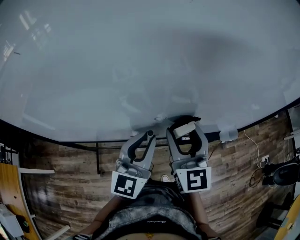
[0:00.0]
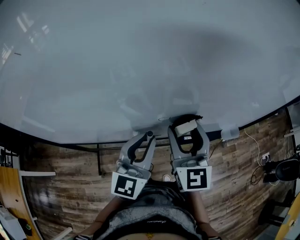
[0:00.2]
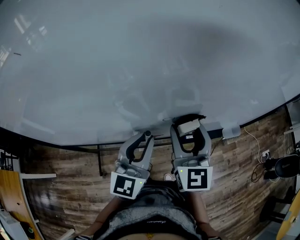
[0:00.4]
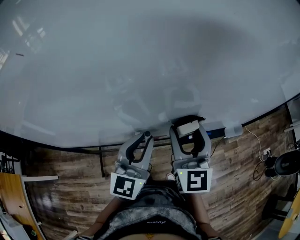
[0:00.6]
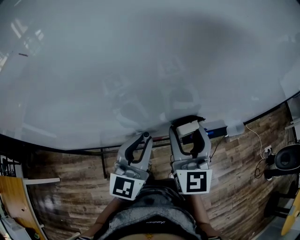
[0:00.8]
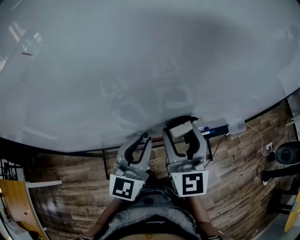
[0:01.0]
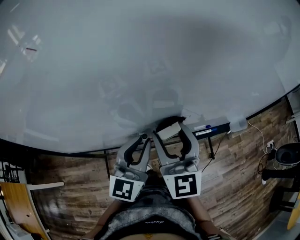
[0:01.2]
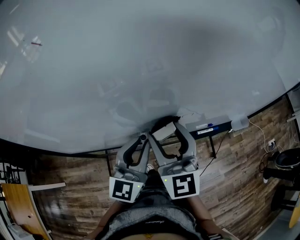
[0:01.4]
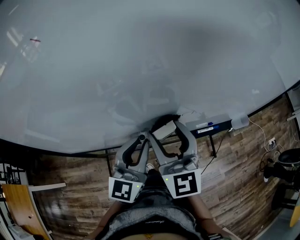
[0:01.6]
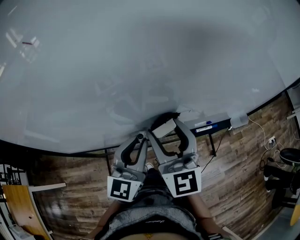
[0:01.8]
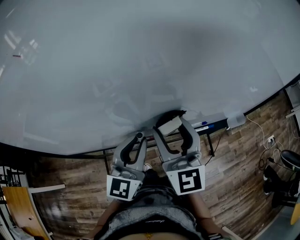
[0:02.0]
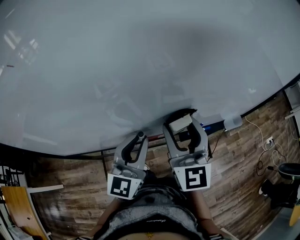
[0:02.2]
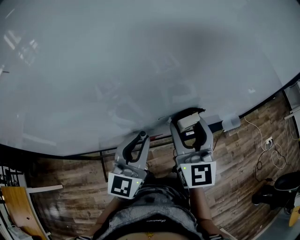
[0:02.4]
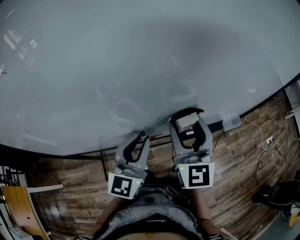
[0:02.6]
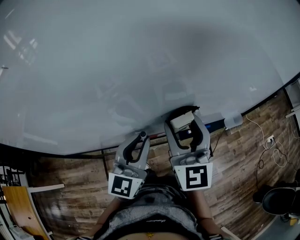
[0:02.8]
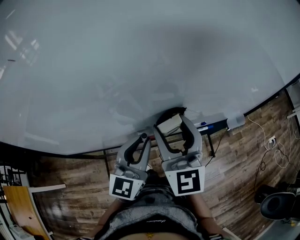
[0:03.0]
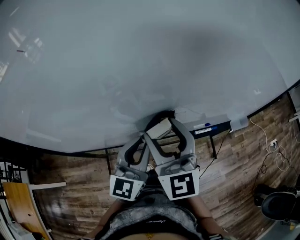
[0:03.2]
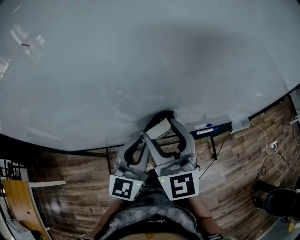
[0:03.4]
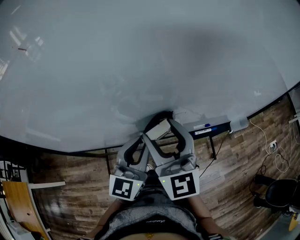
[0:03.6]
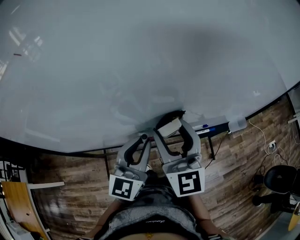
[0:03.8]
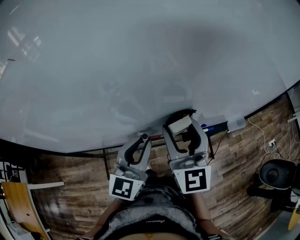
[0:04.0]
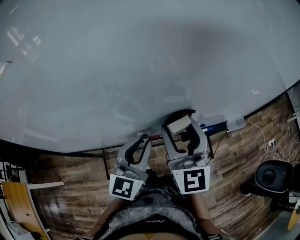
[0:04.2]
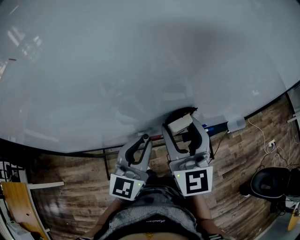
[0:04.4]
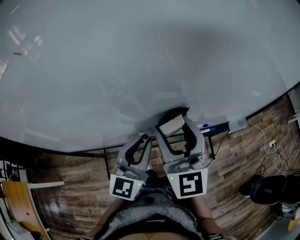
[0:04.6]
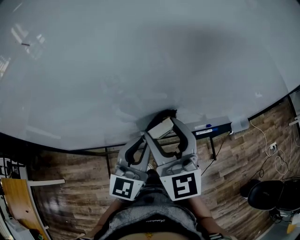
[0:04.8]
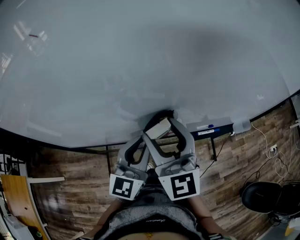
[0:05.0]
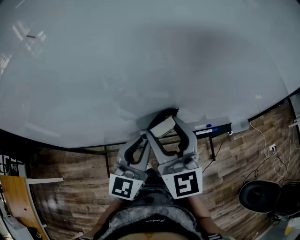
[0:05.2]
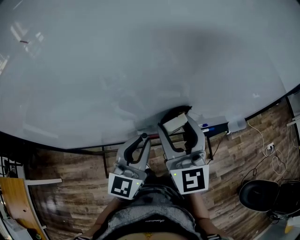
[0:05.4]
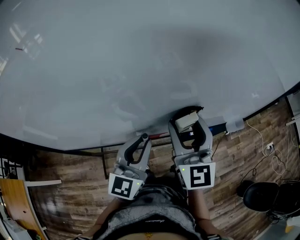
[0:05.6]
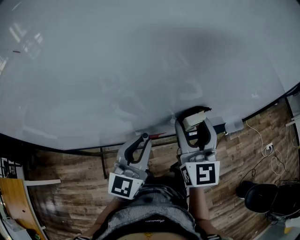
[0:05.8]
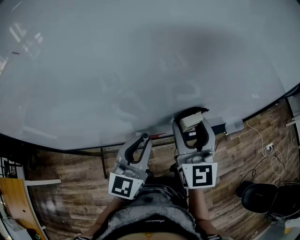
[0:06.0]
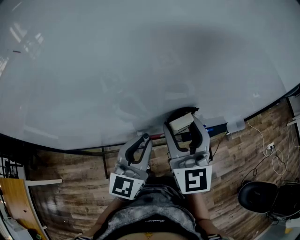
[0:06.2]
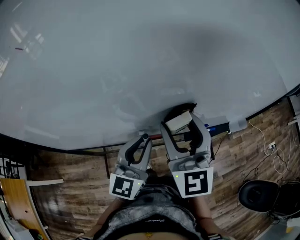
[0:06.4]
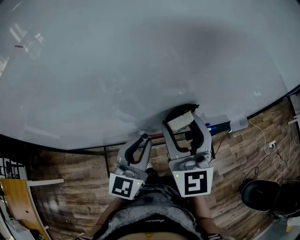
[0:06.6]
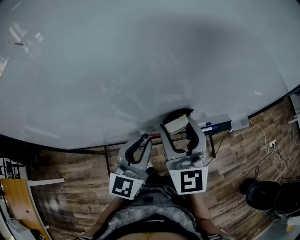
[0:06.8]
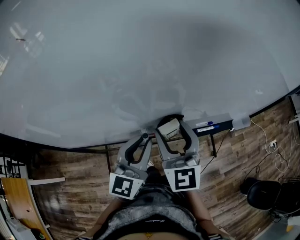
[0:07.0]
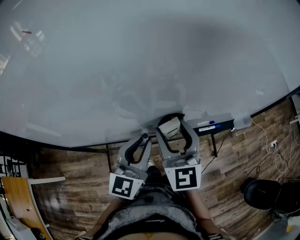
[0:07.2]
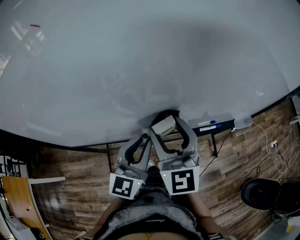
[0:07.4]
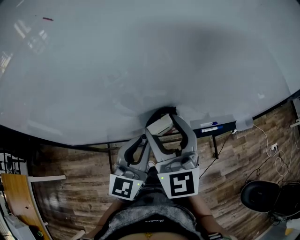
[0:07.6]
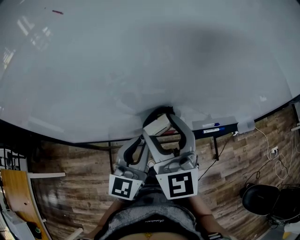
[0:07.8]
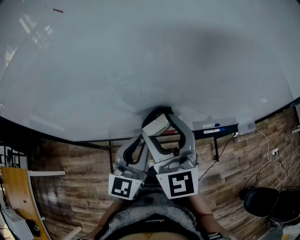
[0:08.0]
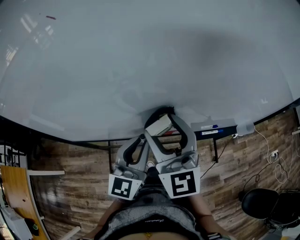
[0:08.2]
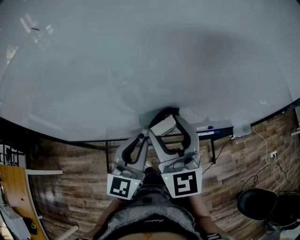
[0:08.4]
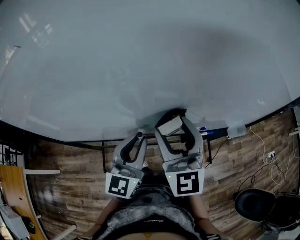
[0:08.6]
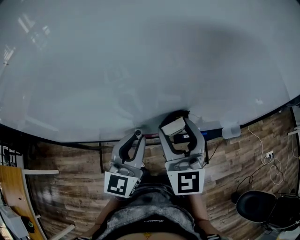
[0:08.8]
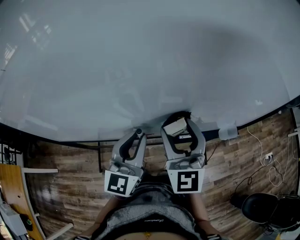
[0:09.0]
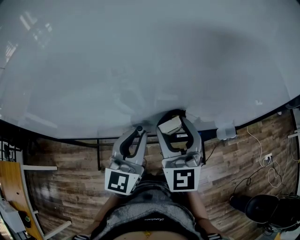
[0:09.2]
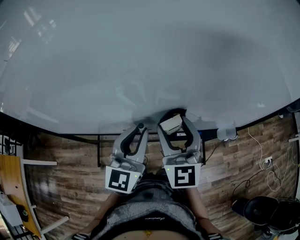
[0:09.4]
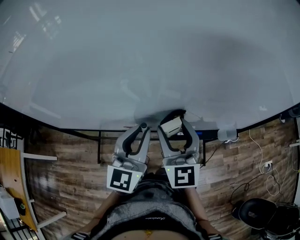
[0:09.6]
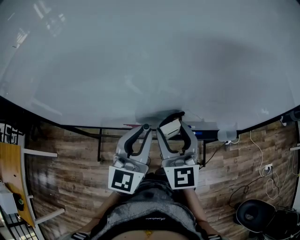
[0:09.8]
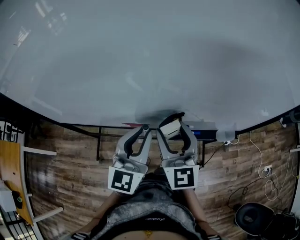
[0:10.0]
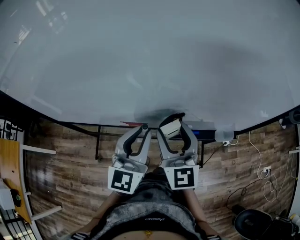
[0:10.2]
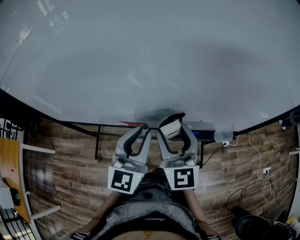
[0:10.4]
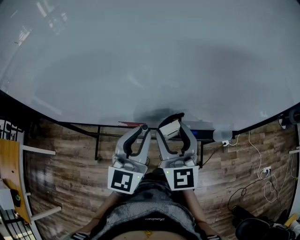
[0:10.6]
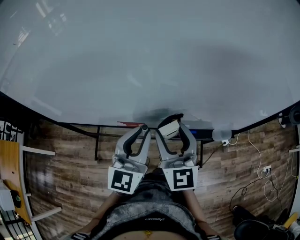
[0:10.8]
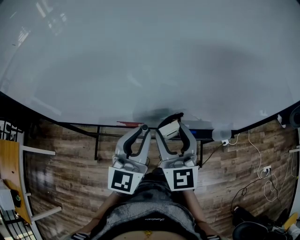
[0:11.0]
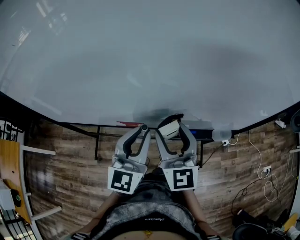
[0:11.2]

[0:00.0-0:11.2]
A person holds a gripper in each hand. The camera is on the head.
0.0 to 1.6 s: Both grippers move to the left, approximately 10 cm.
1.6 to 3.2 s: The right gripper moves roughly 10 cm to the right and comes back.
3.2 to 4.8 s: The grippers stay close to where they were, moving slightly.
4.8 to 6.4 s: The right gripper goes about 5 cm to the right.
6.4 to 8.0 s: The left gripper shifts some 5 cm to the left. Meanwhile the right gripper moves to the left, some 10 cm.
8.0 to 9.6 s: Both grippers move to the right, approximately 20 cm.
9.6 to 11.2 s: The grippers make only small movements.

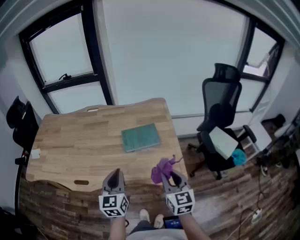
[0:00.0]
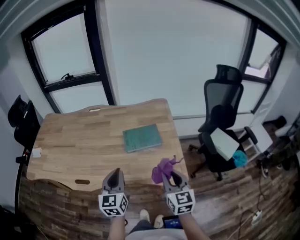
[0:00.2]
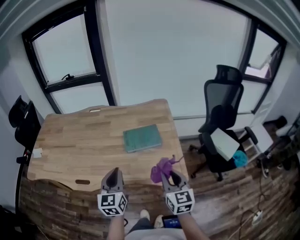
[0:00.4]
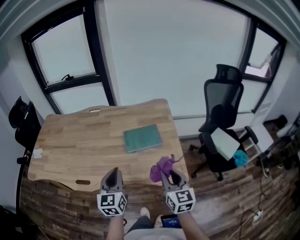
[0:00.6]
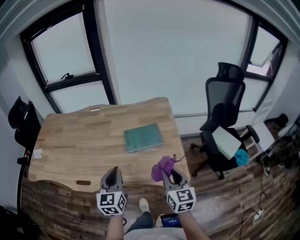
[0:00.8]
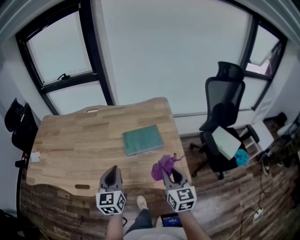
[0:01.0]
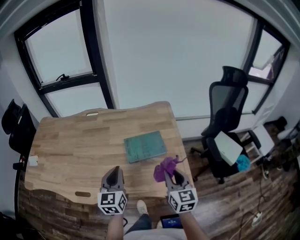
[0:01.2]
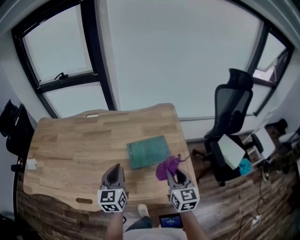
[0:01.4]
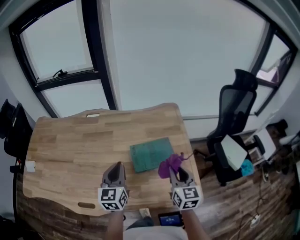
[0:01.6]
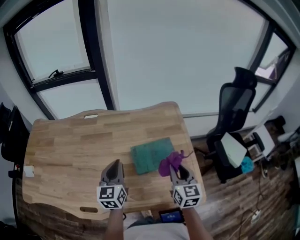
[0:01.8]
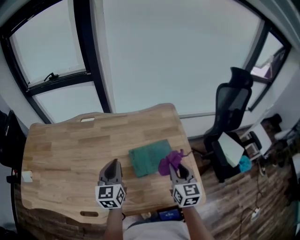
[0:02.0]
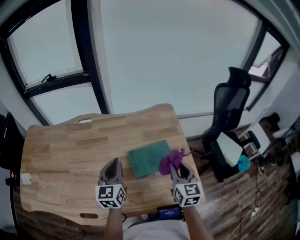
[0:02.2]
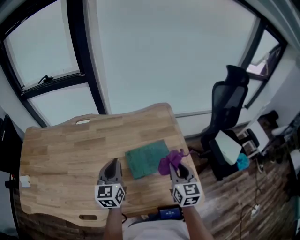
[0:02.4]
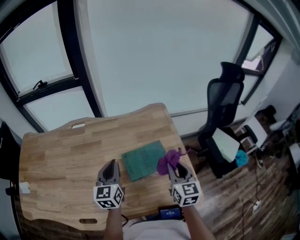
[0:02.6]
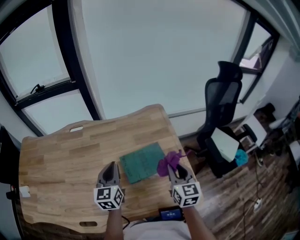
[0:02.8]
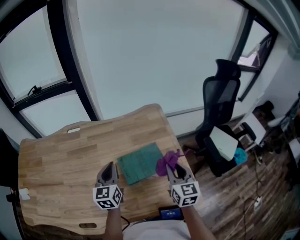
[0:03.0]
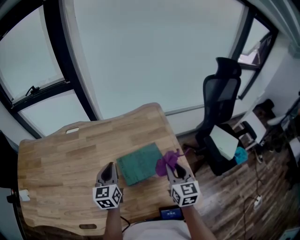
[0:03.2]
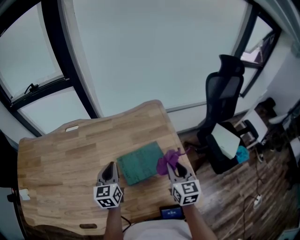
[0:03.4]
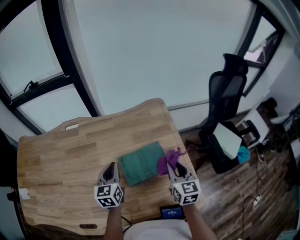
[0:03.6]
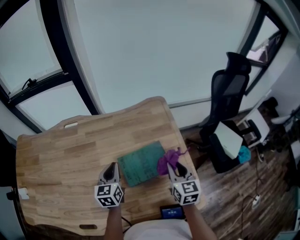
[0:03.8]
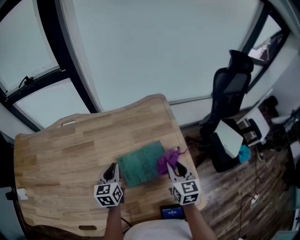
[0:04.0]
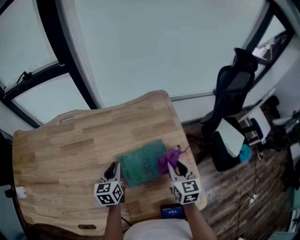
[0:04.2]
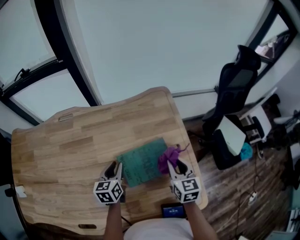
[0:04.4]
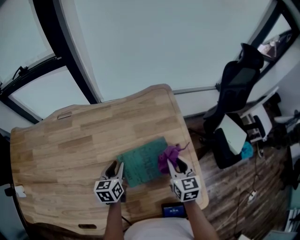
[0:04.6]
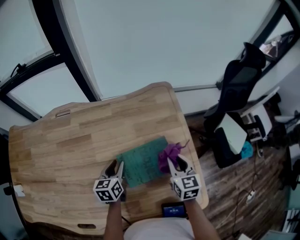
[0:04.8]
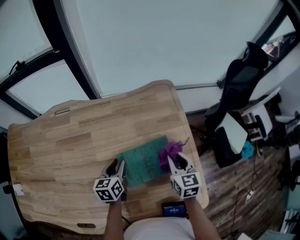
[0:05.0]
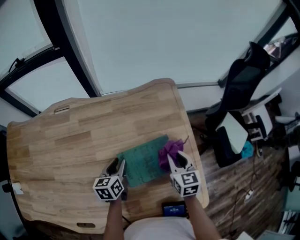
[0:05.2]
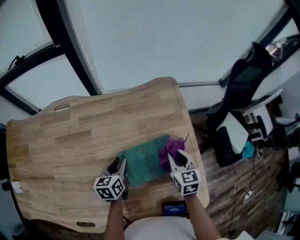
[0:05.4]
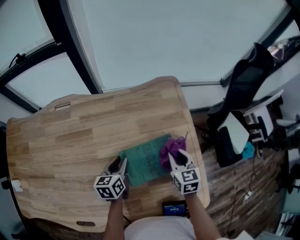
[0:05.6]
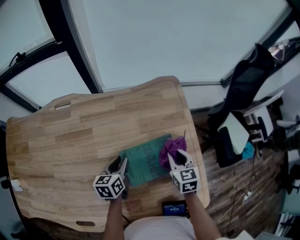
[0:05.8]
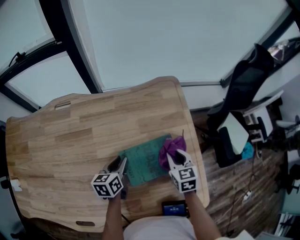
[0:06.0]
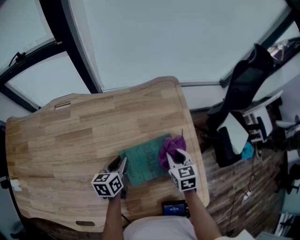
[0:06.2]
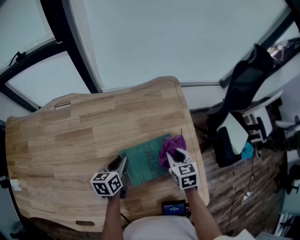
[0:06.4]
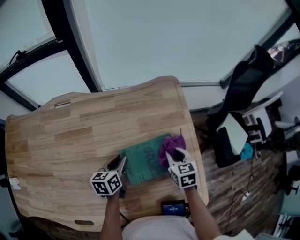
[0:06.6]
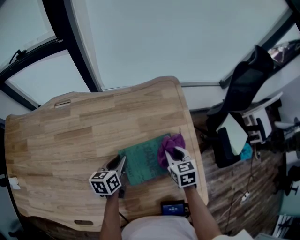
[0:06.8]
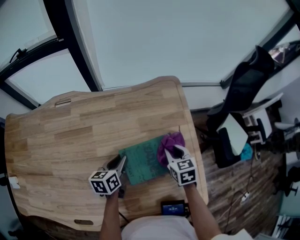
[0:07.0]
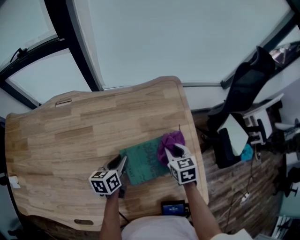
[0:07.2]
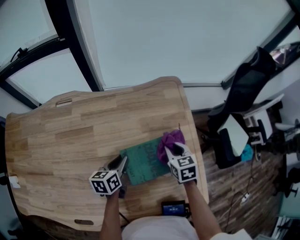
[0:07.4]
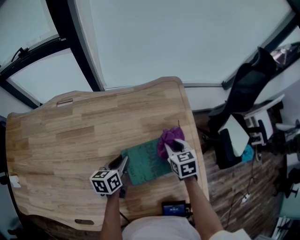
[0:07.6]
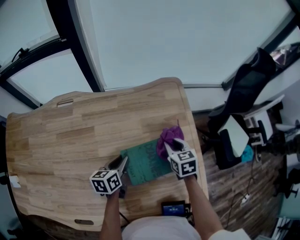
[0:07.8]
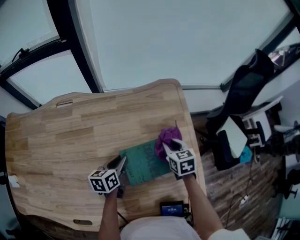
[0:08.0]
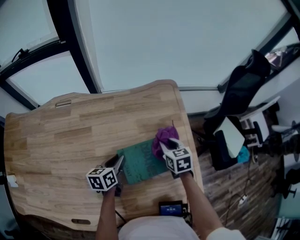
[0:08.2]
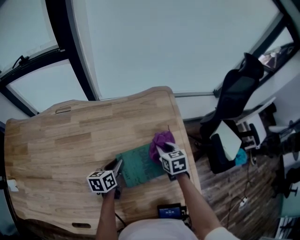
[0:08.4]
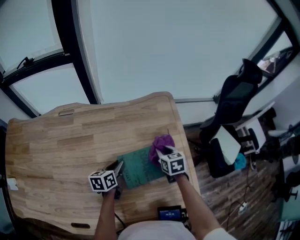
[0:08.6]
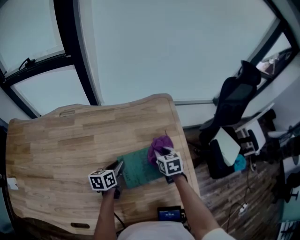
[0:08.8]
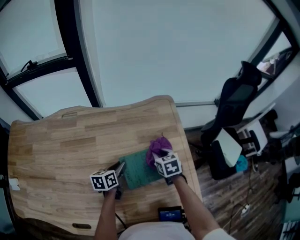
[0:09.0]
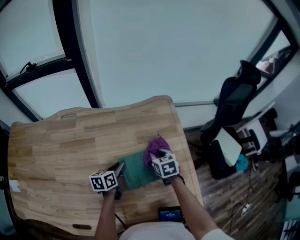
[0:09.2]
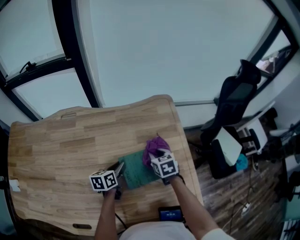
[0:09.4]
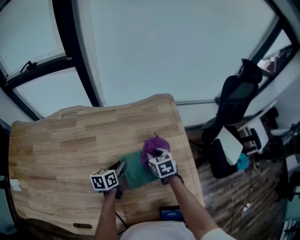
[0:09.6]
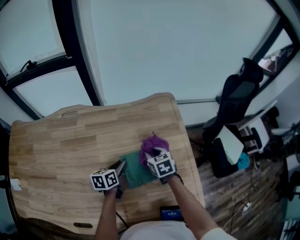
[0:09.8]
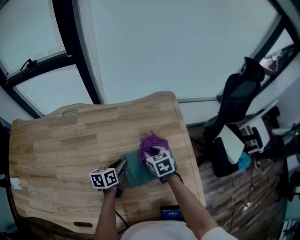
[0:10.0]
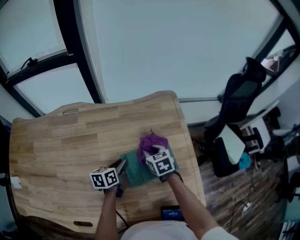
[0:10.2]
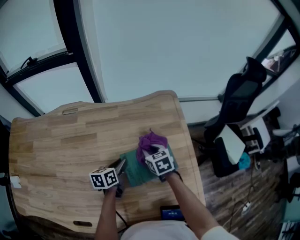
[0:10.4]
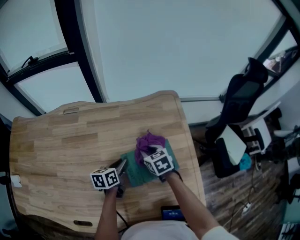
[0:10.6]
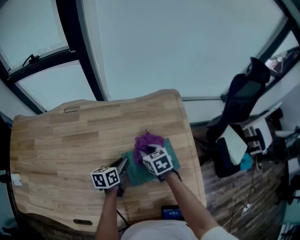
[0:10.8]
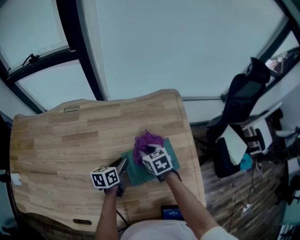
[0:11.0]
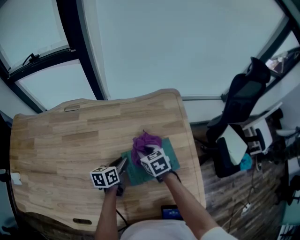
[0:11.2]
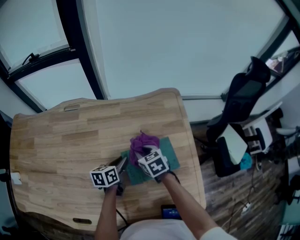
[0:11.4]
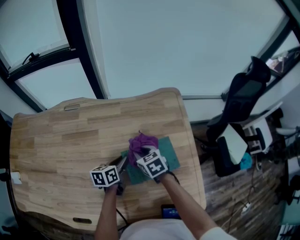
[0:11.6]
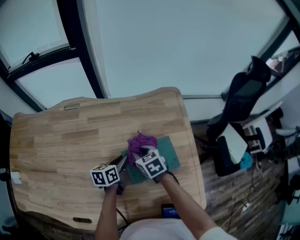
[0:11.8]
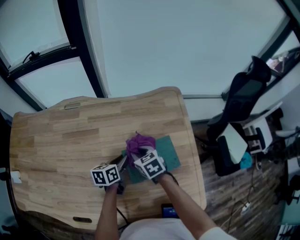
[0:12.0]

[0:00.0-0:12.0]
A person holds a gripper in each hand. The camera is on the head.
0.0 to 1.6 s: Both grippers travel together forward, some 20 cm.
1.6 to 3.0 s: The left gripper heads forward, covering about 10 cm; the right gripper moves approximately 5 cm.
3.0 to 4.4 s: The right gripper is displaced downward and forward by approximately 10 cm; the left gripper travels downward by about 15 cm, swivels approximately 20 degrees, and opens up.
4.4 to 6.0 s: The right gripper moves downward, about 5 cm.
6.0 to 7.6 s: The grippers make only small movements.
7.6 to 9.0 s: The grippers move only a little.
9.0 to 10.4 s: The right gripper is displaced to the left by approximately 5 cm.
10.4 to 12.0 s: The right gripper is displaced to the left by some 5 cm.

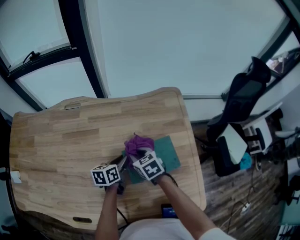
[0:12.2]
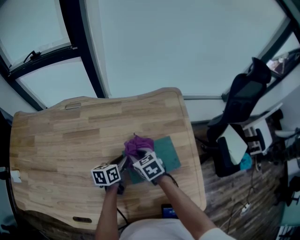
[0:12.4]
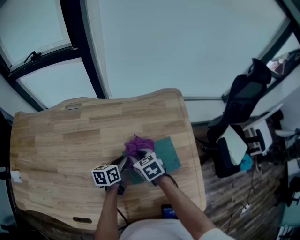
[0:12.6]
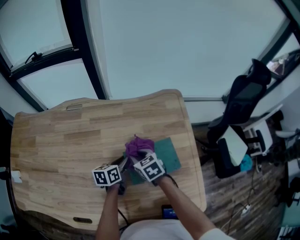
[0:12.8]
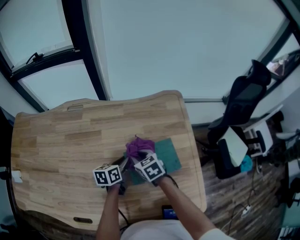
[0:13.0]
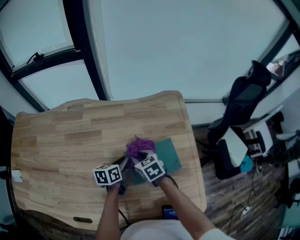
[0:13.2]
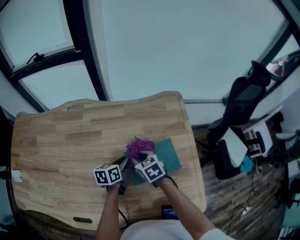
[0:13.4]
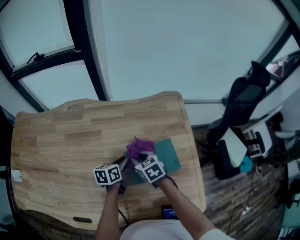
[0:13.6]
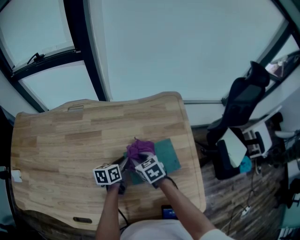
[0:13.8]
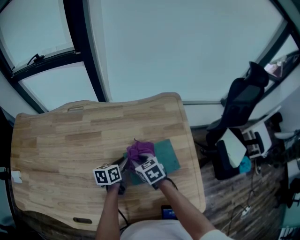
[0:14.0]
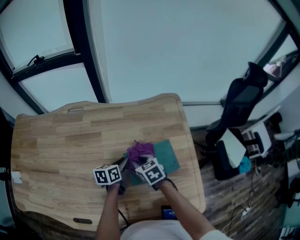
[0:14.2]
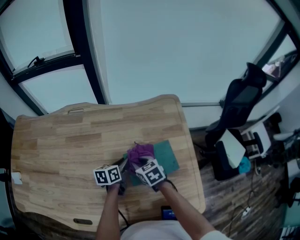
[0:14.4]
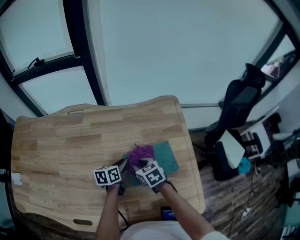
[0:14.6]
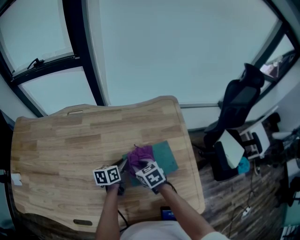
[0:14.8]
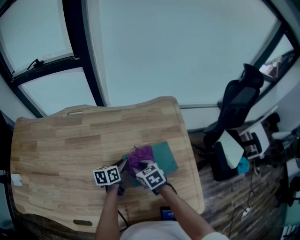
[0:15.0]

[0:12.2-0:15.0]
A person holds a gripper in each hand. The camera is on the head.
12.2 to 13.6 s: Both grippers stay about where they are.
13.6 to 15.0 s: The grippers stay close to where they were, moving slightly.
